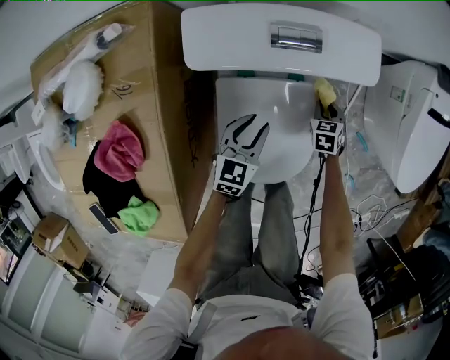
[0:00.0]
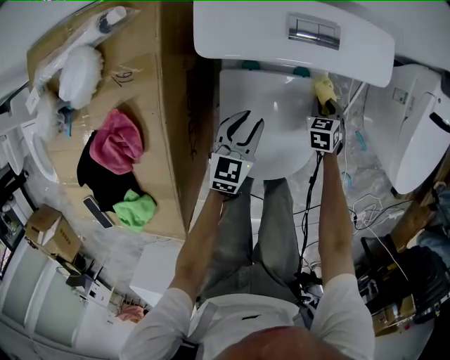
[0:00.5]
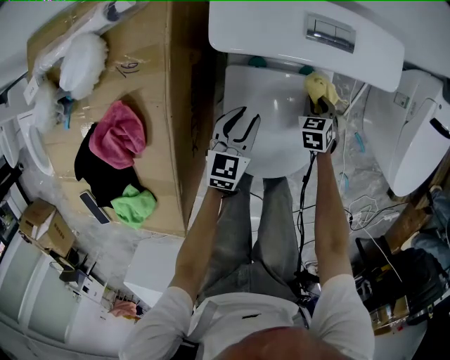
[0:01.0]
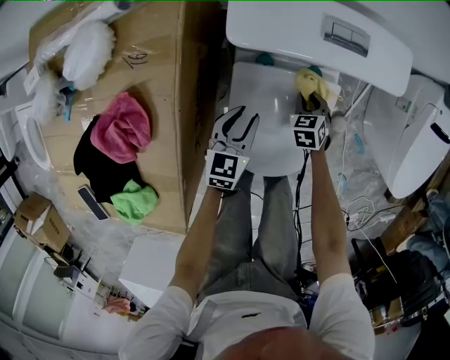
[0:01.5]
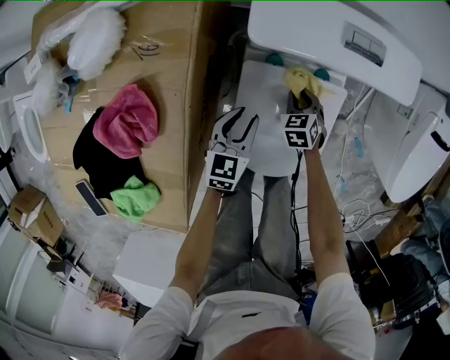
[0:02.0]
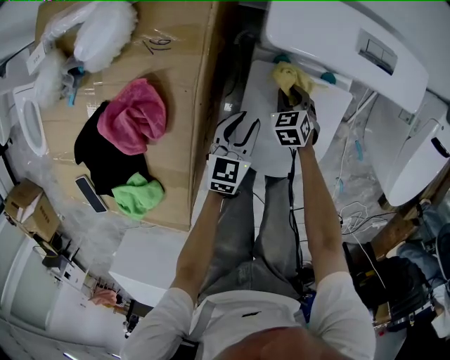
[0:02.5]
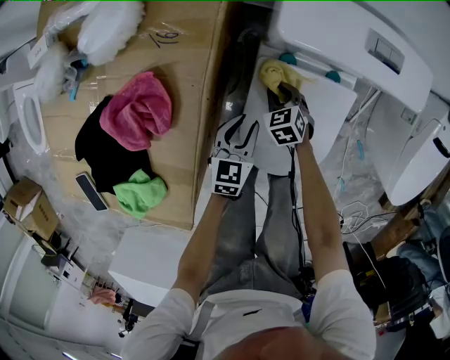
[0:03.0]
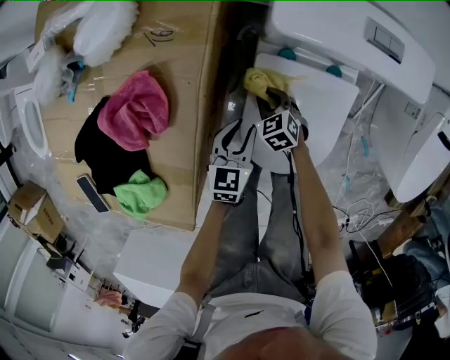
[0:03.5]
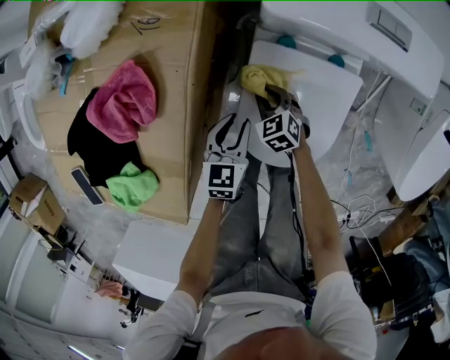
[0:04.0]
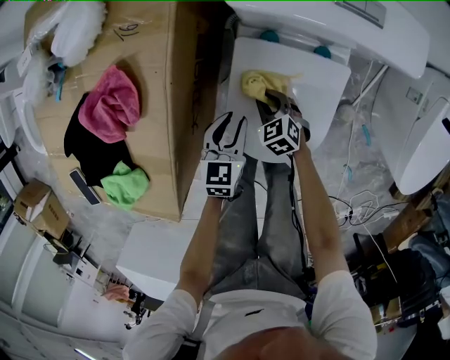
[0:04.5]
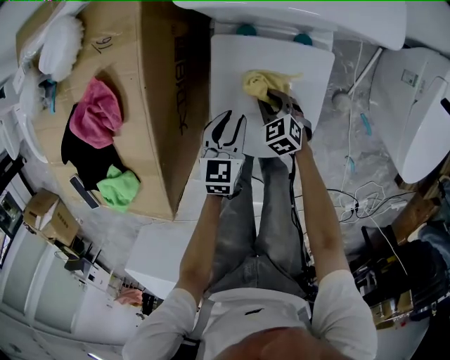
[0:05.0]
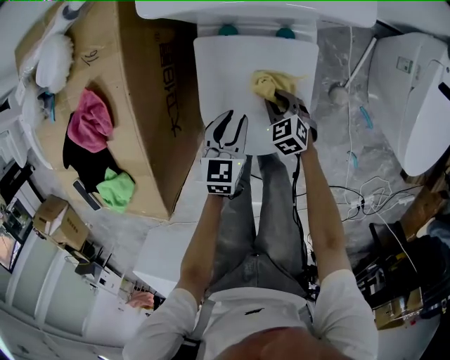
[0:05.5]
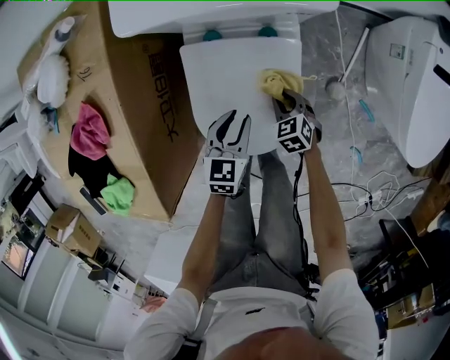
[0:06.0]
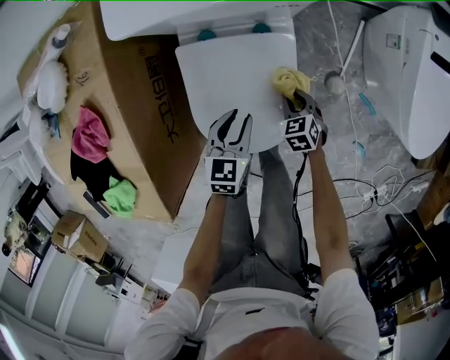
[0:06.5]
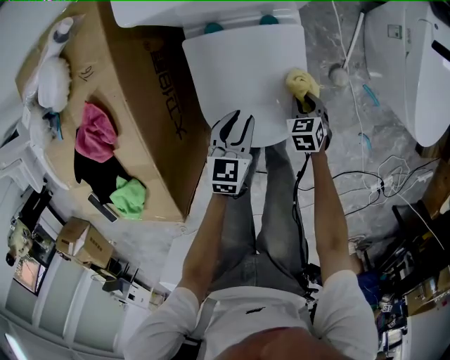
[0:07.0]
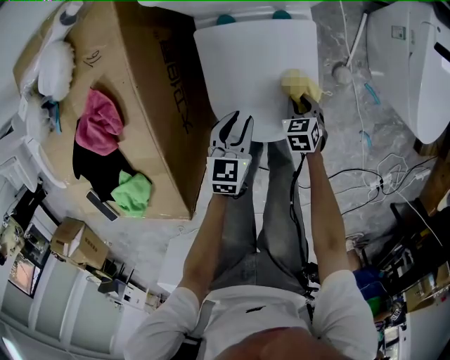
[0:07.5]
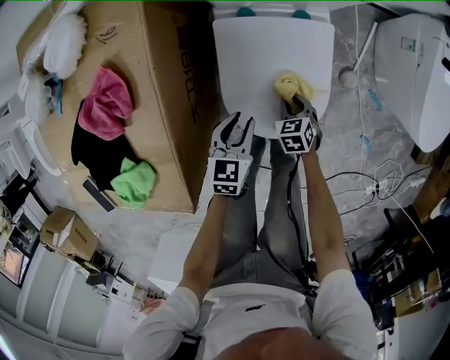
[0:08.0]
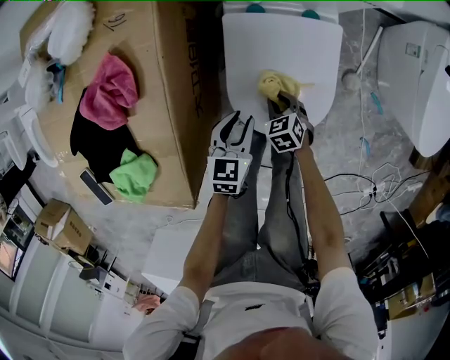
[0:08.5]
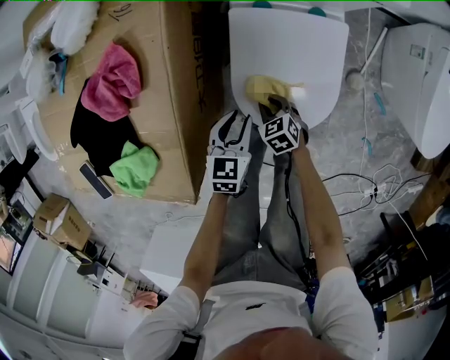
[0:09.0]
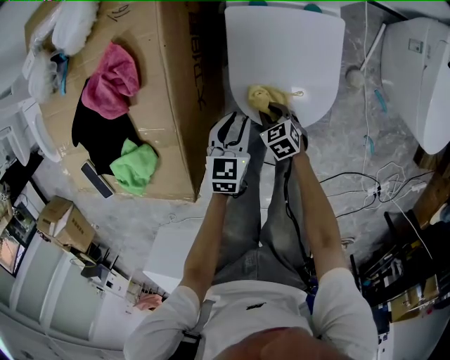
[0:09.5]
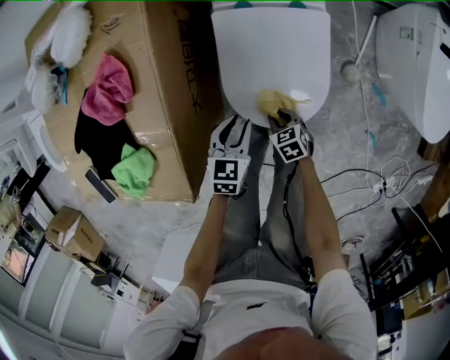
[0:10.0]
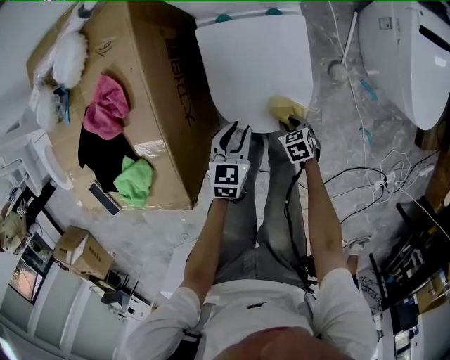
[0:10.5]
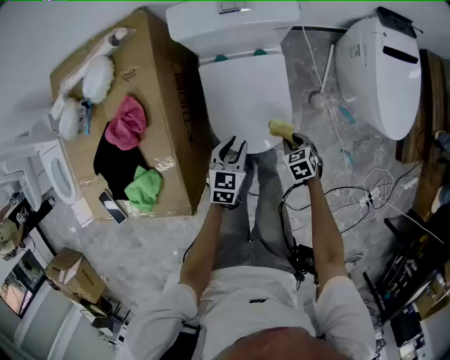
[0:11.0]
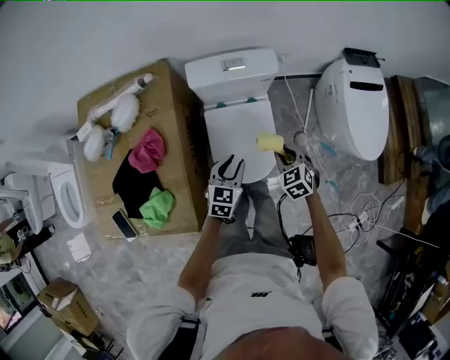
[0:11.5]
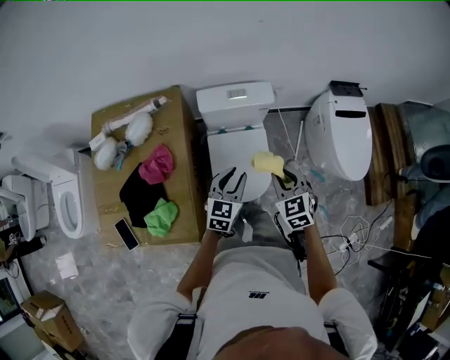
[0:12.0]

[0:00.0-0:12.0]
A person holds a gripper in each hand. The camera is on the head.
0.0 to 2.0 s: The left gripper heads to the left and backward, covering approximately 10 cm, while the right gripper travels to the left by approximately 20 cm.
2.0 to 4.0 s: The right gripper moves some 15 cm, and swivels about 30 degrees; the left gripper shifts by approximately 10 cm.
4.0 to 6.0 s: The left gripper shifts roughly 15 cm to the right. Meanwhile the right gripper shifts roughly 25 cm to the right and backward.
6.0 to 8.0 s: The left gripper travels to the left and backward by some 15 cm, while the right gripper heads backward and to the left, covering some 10 cm.
8.0 to 10.0 s: The left gripper shifts by roughly 5 cm. The right gripper travels backward and to the left by roughly 10 cm.
10.0 to 12.0 s: Both grippers travel together upward, approximately 50 cm. The right gripper changes its angle by approximately 40 degrees, while the left gripper swivels approximately 30 degrees.

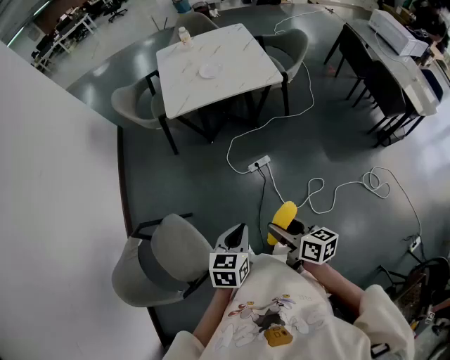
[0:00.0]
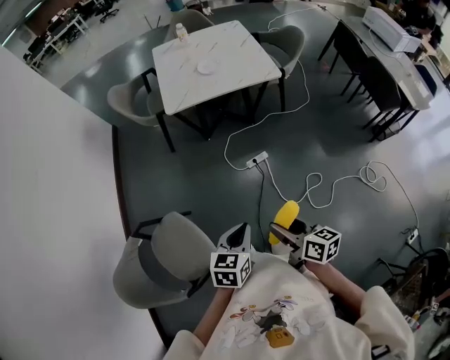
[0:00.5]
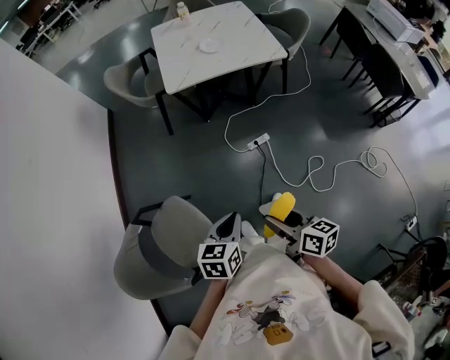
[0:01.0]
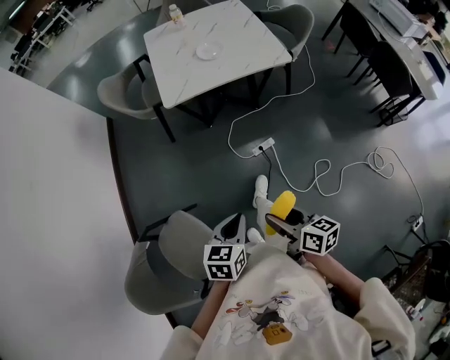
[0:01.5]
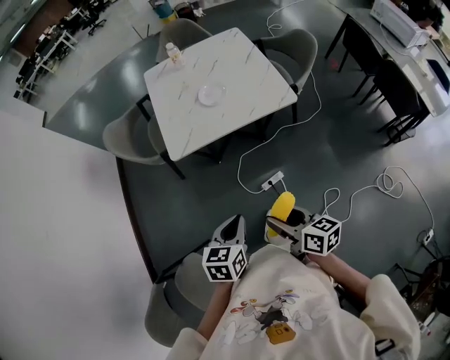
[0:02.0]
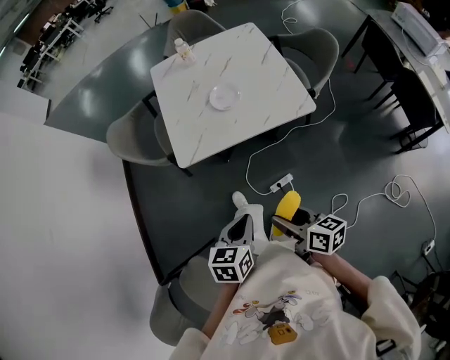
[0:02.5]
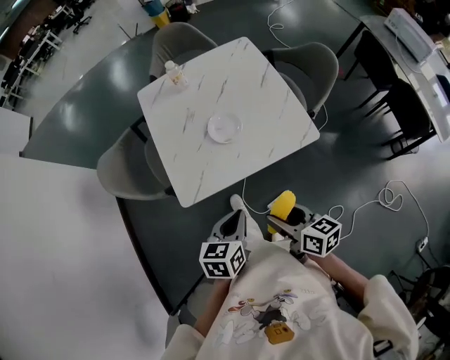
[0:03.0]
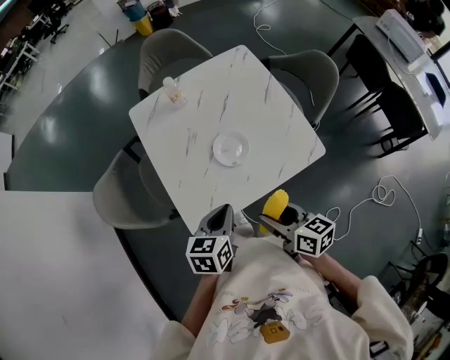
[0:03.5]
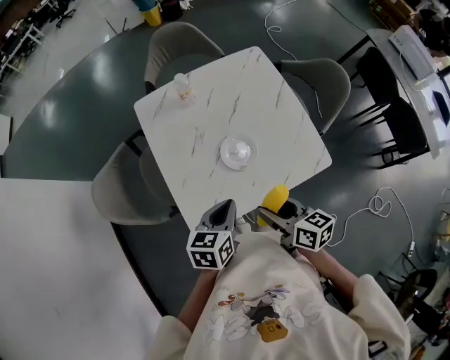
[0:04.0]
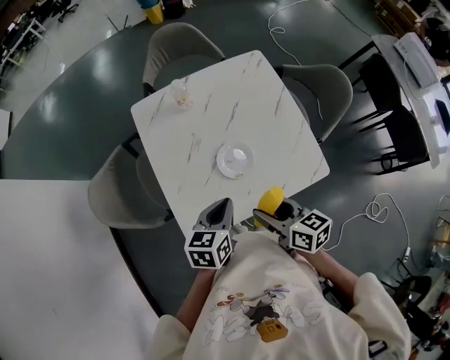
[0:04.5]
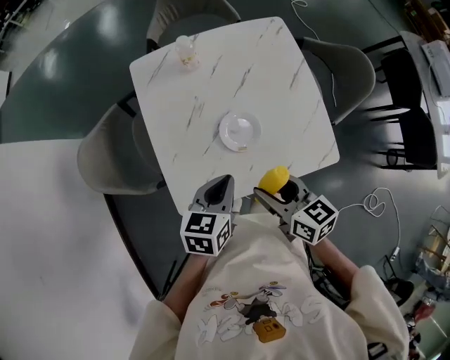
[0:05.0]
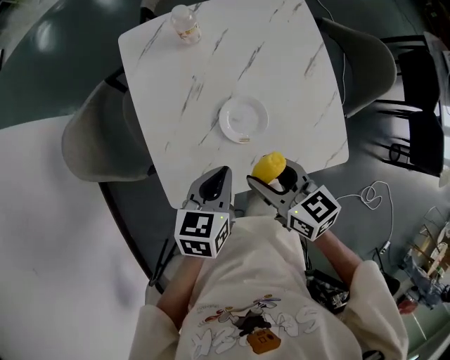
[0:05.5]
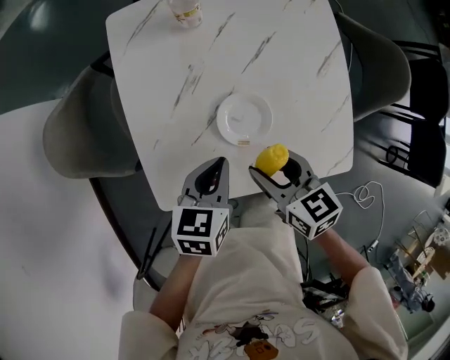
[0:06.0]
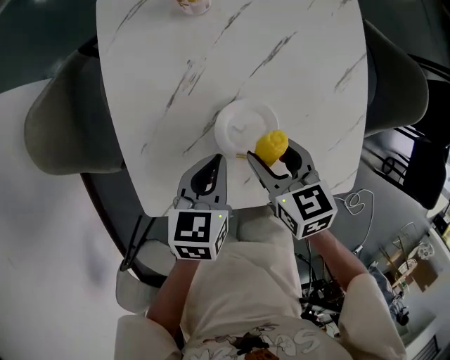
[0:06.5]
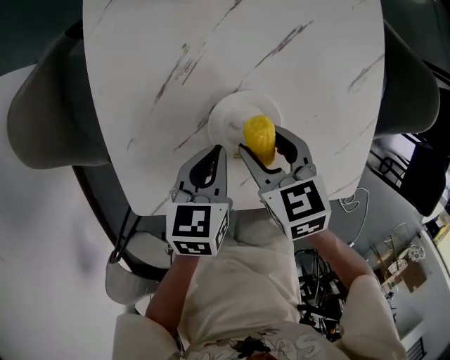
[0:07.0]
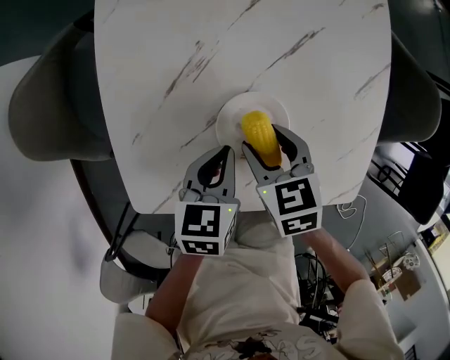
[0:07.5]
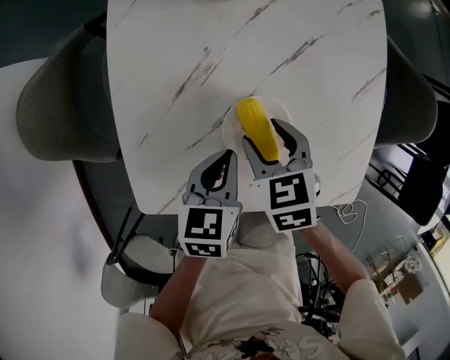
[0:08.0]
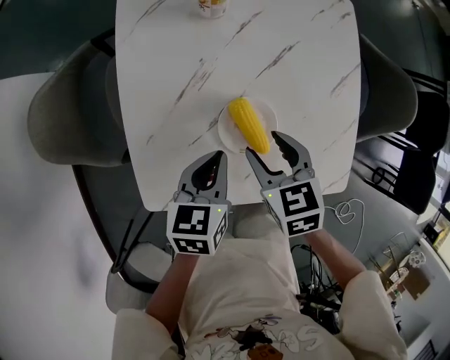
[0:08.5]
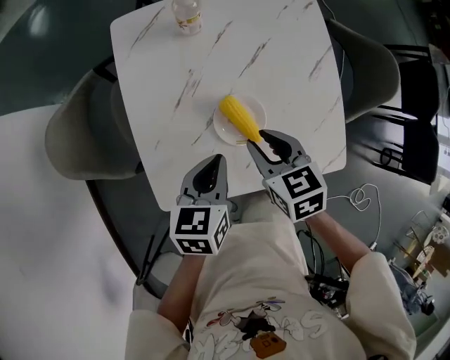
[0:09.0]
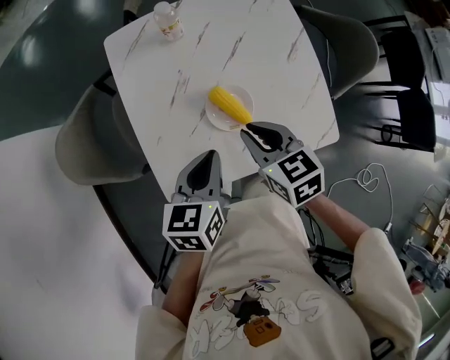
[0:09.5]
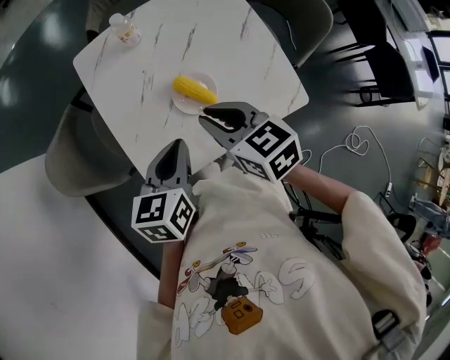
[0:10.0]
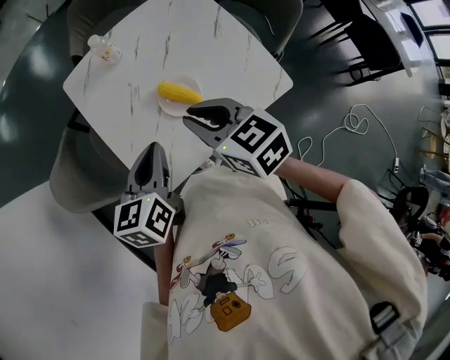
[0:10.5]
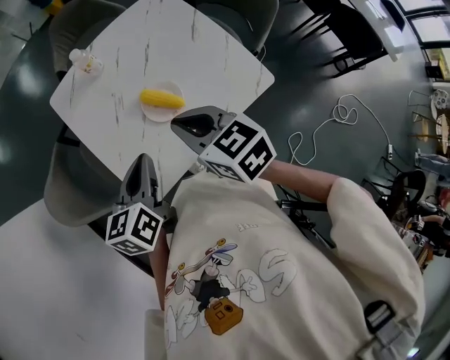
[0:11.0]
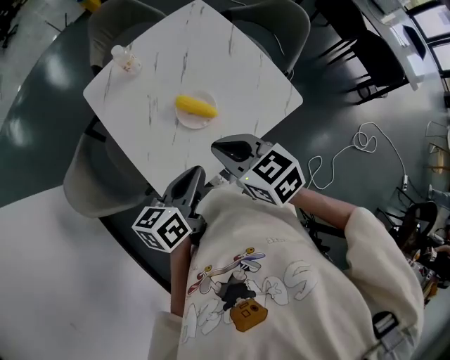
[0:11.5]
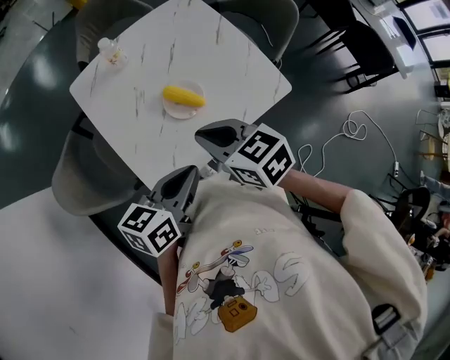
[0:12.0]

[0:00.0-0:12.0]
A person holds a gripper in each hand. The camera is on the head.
0.0 to 2.0 s: Both grippers move forward, roughly 25 cm.
2.0 to 4.0 s: The pair of grippers is taken forward, roughly 50 cm.
4.0 to 6.0 s: The right gripper heads forward and downward, covering about 15 cm, and changes its angle by roughly 30 degrees. The left gripper goes approximately 15 cm downward and forward.
6.0 to 8.0 s: The right gripper heads downward and forward, covering about 15 cm, and turns by some 30 degrees. Meanwhile the left gripper is displaced downward by approximately 10 cm.
8.0 to 10.0 s: Both grippers travel together upward, some 20 cm. The left gripper turns by roughly 20 degrees. Meanwhile the right gripper rotates about 30 degrees, and closes its fingers.
10.0 to 12.0 s: Both grippers travel together backward, some 5 cm. The left gripper swivels approximately 30 degrees.

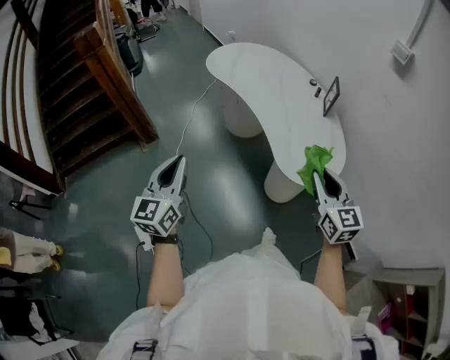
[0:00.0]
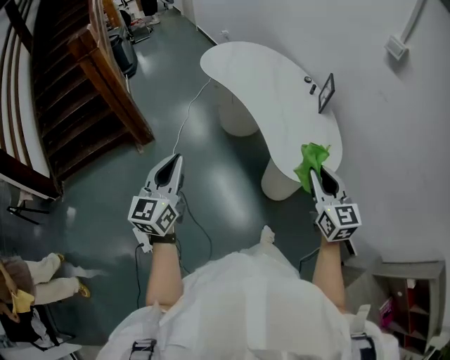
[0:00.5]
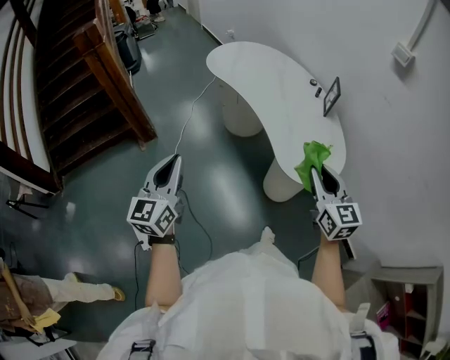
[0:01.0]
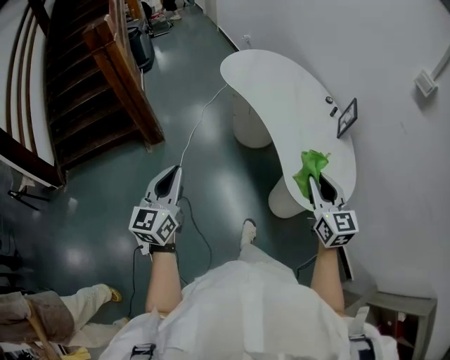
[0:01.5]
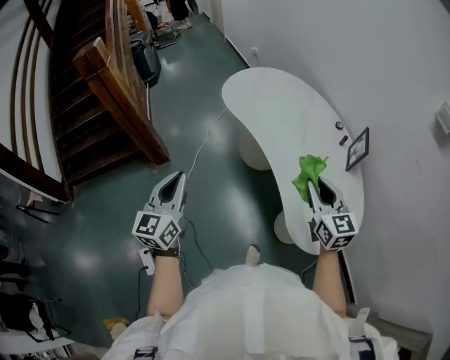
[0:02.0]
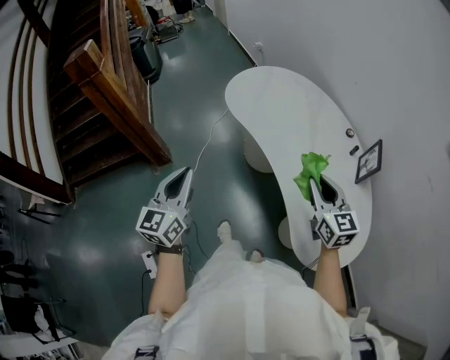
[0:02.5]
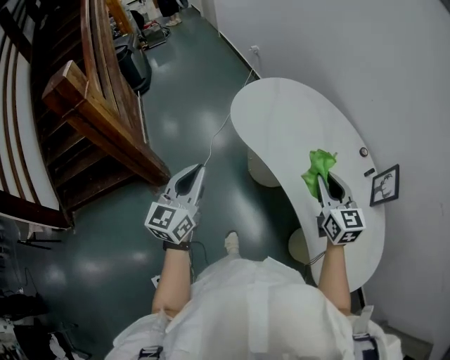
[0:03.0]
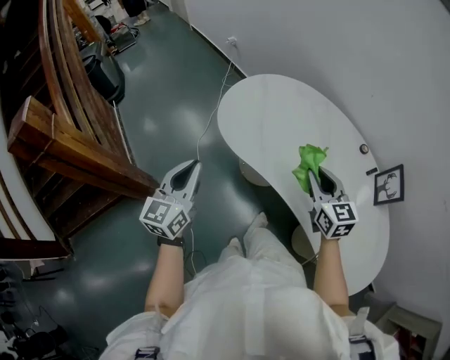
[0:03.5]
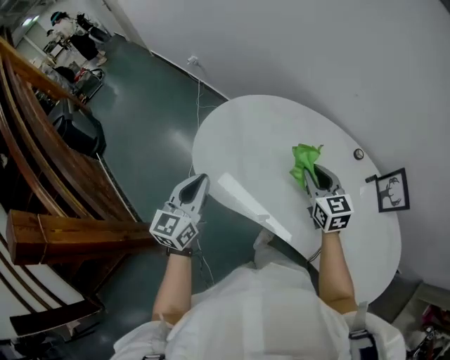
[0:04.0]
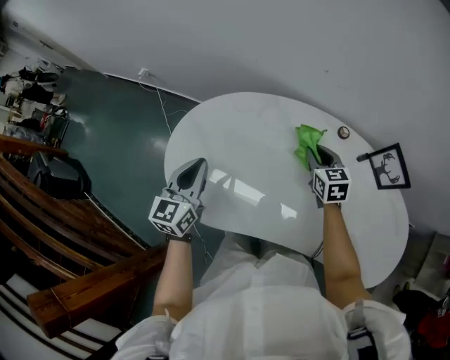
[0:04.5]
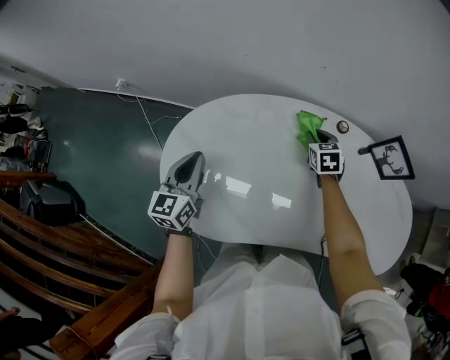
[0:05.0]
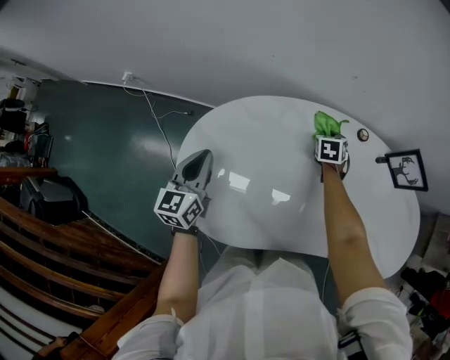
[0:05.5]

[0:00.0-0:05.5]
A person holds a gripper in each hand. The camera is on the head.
0.0 to 2.0 s: The grippers both shift forward by about 25 cm.
2.0 to 3.5 s: The two grippers go some 40 cm forward.
3.5 to 5.5 s: The right gripper changes place by approximately 50 cm, and tips its fingers downward by about 40 degrees. The left gripper moves some 50 cm, and changes its angle by approximately 40 degrees.
